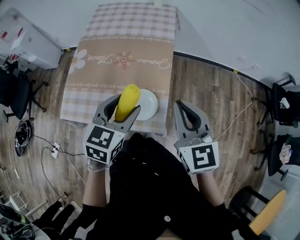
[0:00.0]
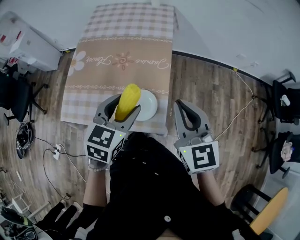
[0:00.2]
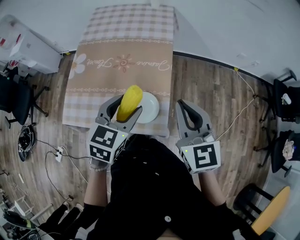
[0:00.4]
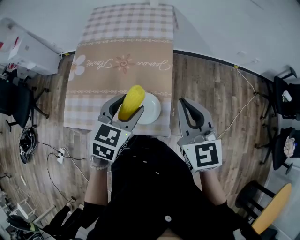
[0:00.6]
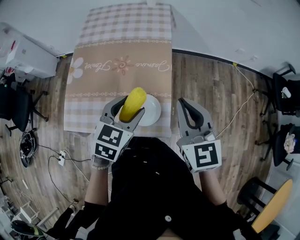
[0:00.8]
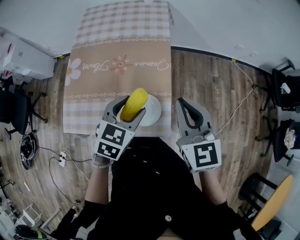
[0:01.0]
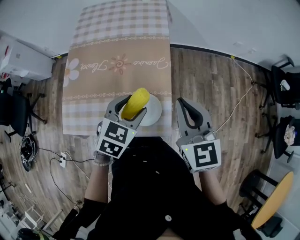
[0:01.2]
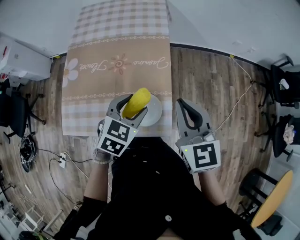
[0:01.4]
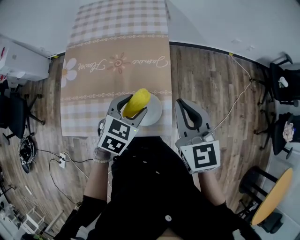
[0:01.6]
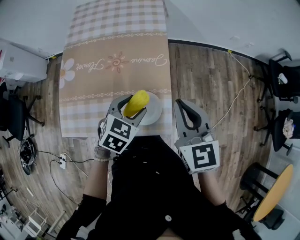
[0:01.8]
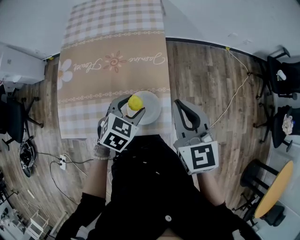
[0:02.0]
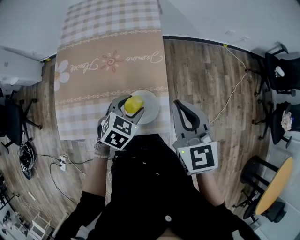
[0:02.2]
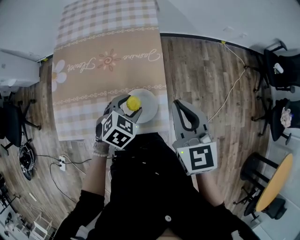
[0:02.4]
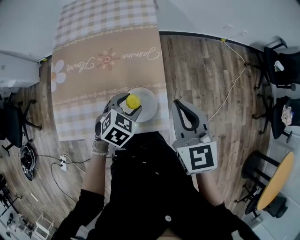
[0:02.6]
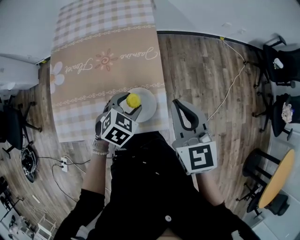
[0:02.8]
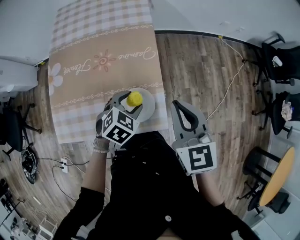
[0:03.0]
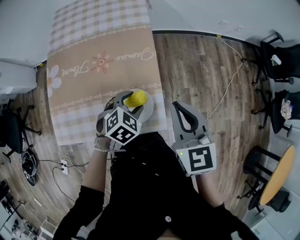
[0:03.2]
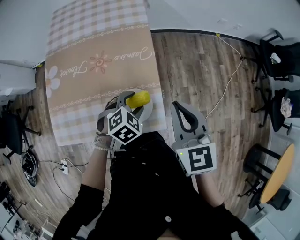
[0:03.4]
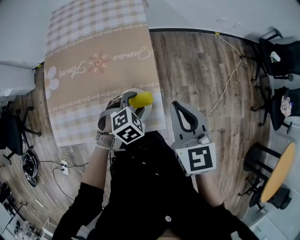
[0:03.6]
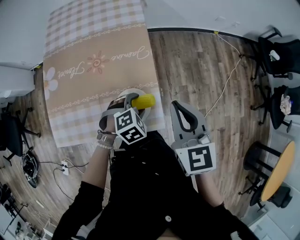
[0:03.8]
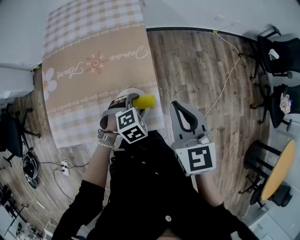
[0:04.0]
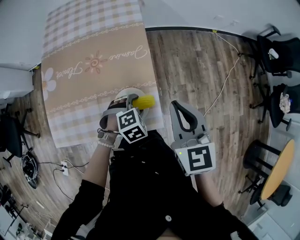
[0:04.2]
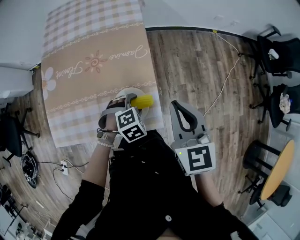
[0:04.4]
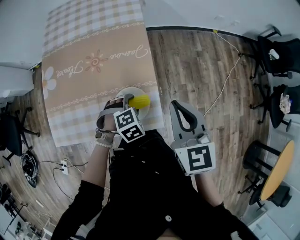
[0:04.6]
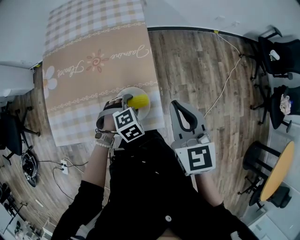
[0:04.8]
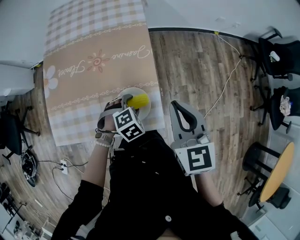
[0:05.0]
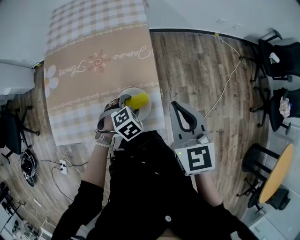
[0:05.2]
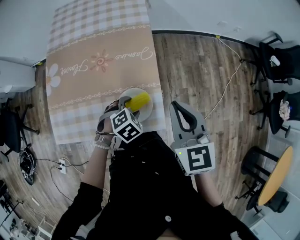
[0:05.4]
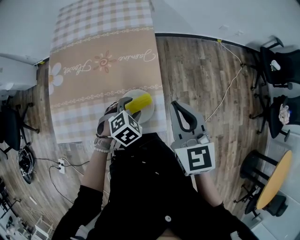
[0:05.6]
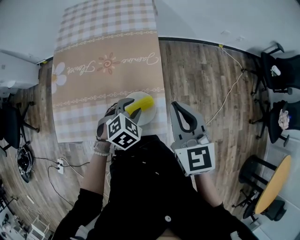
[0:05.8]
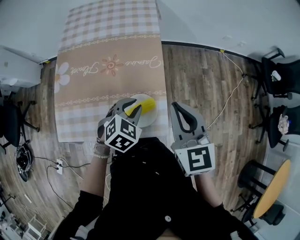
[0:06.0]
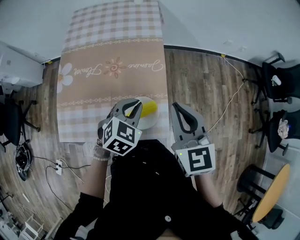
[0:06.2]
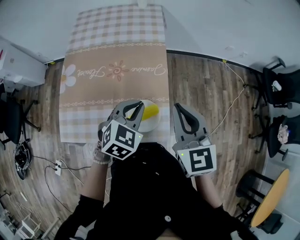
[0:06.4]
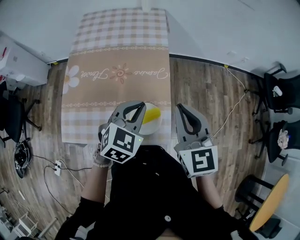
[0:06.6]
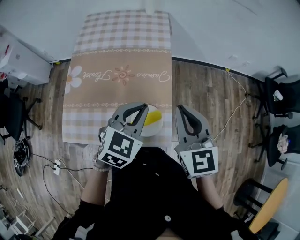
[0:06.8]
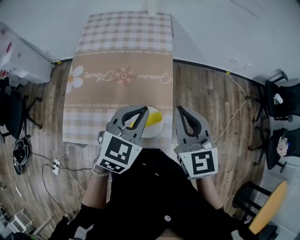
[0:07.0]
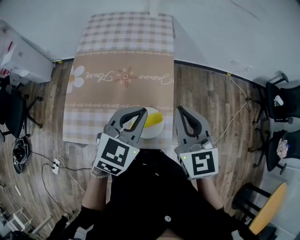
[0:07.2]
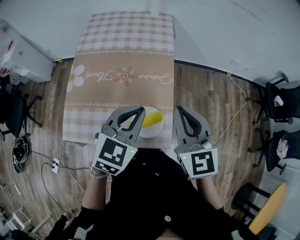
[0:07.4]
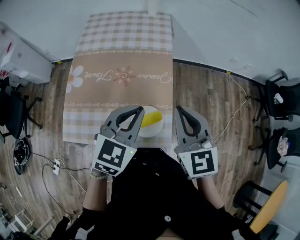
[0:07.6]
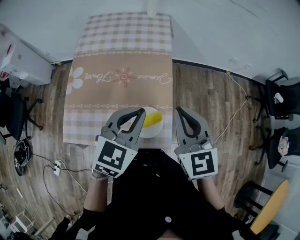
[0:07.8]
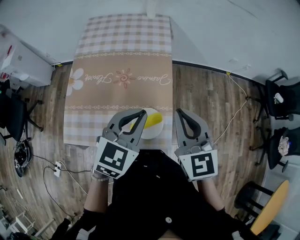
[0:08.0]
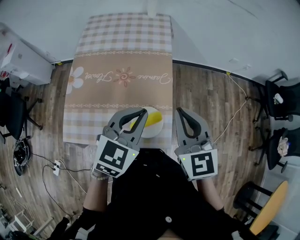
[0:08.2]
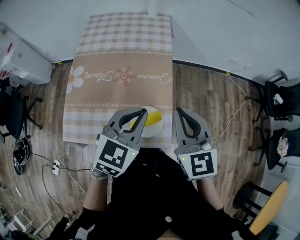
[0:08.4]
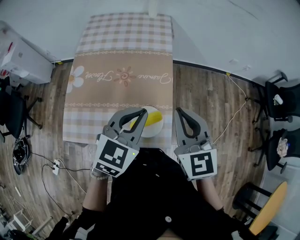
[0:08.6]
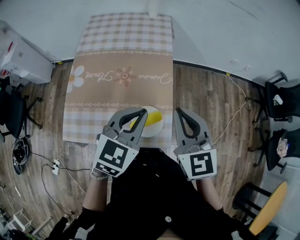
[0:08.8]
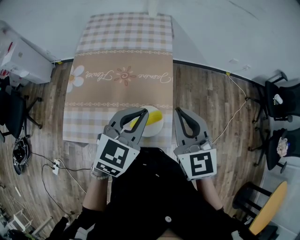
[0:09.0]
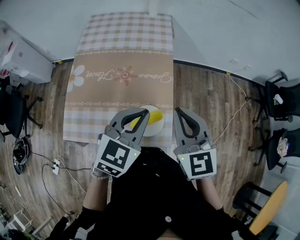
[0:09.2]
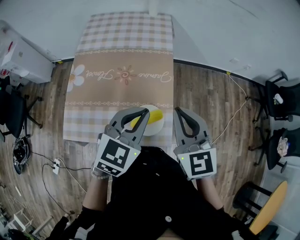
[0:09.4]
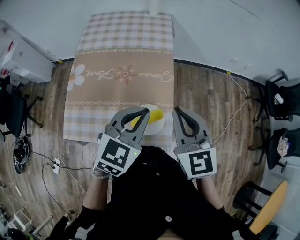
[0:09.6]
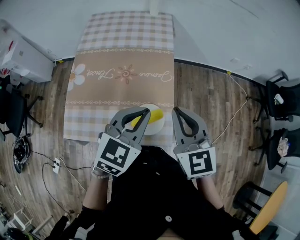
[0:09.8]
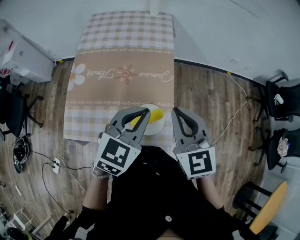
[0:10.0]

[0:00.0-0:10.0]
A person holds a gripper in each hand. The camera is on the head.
0:00.0 to 0:01.4: The left gripper heads downward, covering about 5 cm, and swivels some 20 degrees.
0:01.4 to 0:02.8: The left gripper heads downward, covering some 10 cm.
0:02.8 to 0:04.2: The left gripper shifts about 10 cm downward and to the right, and turns by about 30 degrees.
0:04.2 to 0:05.8: The left gripper is displaced to the left and upward by approximately 10 cm, and changes its angle by roughly 20 degrees.
0:05.8 to 0:07.2: The left gripper goes approximately 20 cm upward, angles its fingers upward, by approximately 30 degrees, and closes, while the right gripper moves some 5 cm.
0:07.2 to 0:08.6: The grippers make only small movements.
0:08.6 to 0:10.0: Both grippers stay about where they are.

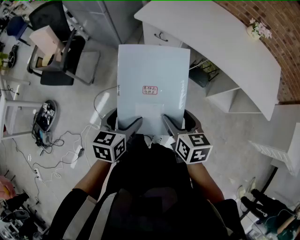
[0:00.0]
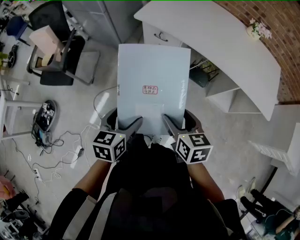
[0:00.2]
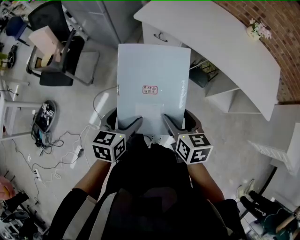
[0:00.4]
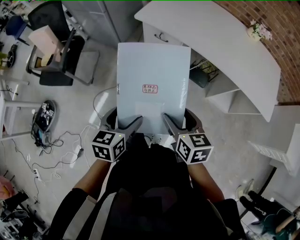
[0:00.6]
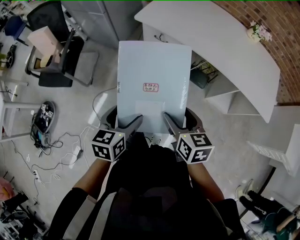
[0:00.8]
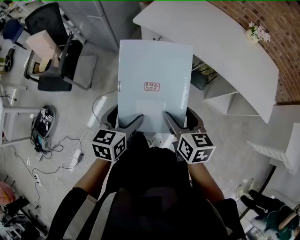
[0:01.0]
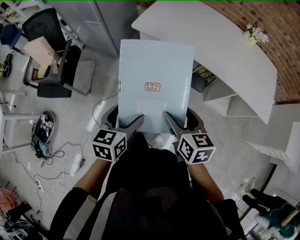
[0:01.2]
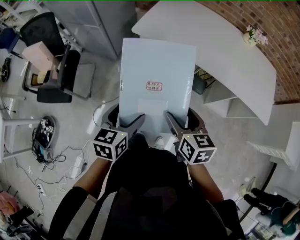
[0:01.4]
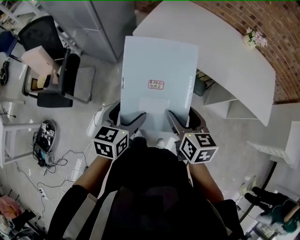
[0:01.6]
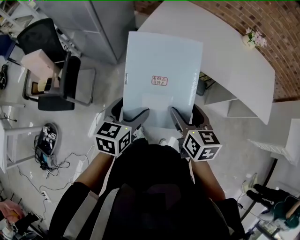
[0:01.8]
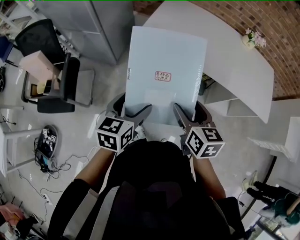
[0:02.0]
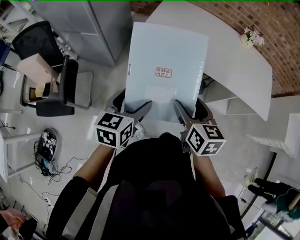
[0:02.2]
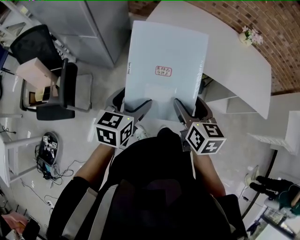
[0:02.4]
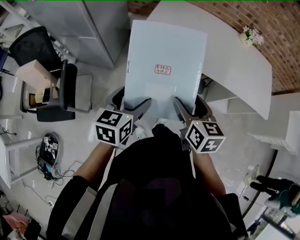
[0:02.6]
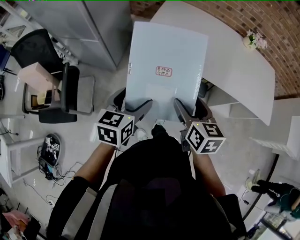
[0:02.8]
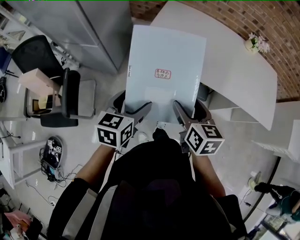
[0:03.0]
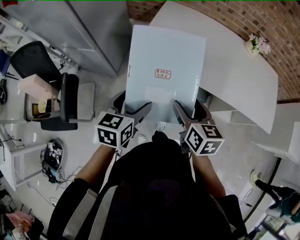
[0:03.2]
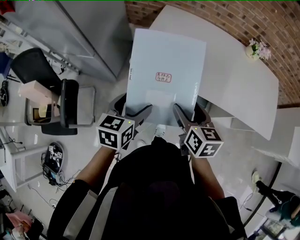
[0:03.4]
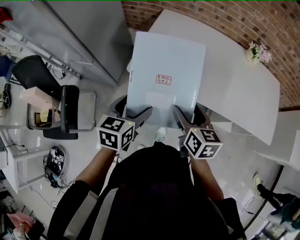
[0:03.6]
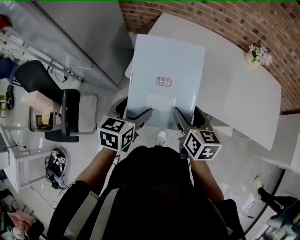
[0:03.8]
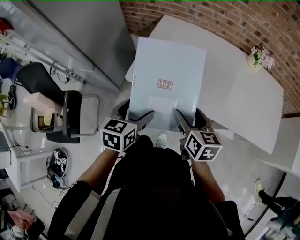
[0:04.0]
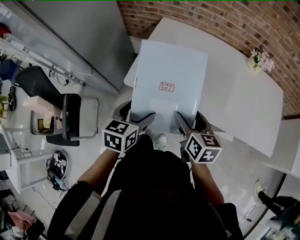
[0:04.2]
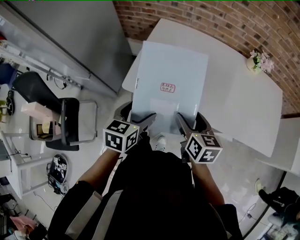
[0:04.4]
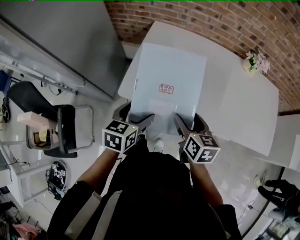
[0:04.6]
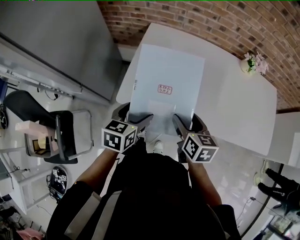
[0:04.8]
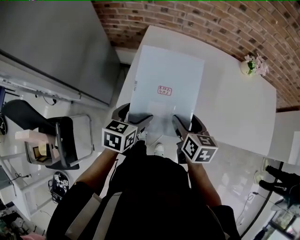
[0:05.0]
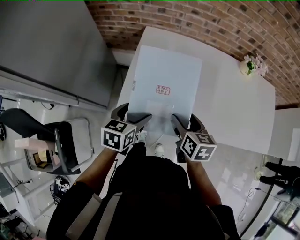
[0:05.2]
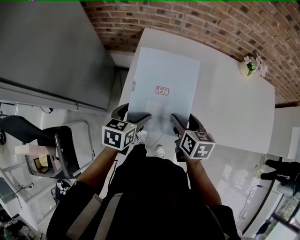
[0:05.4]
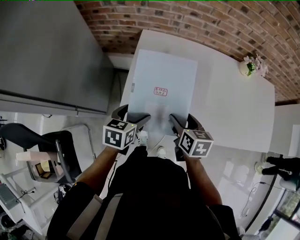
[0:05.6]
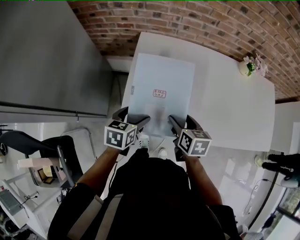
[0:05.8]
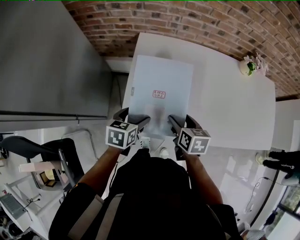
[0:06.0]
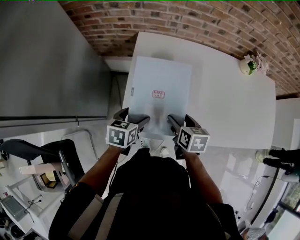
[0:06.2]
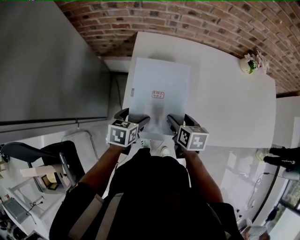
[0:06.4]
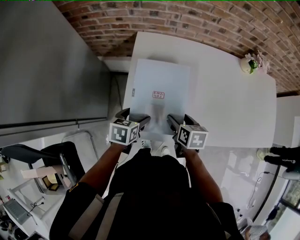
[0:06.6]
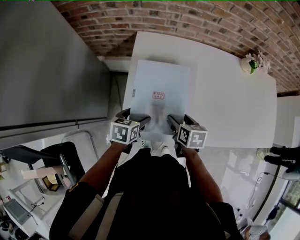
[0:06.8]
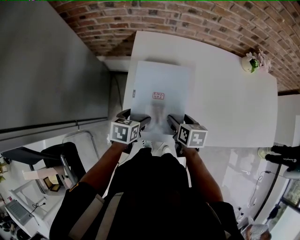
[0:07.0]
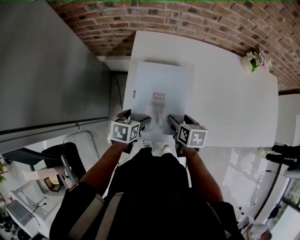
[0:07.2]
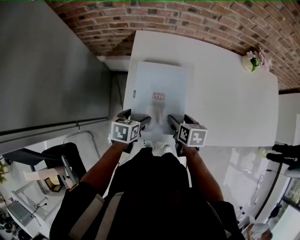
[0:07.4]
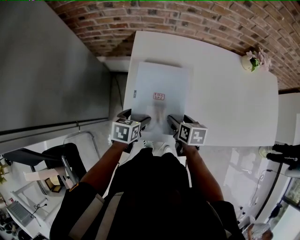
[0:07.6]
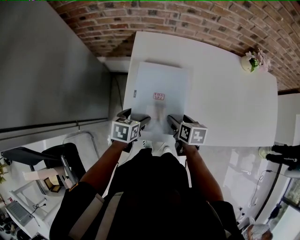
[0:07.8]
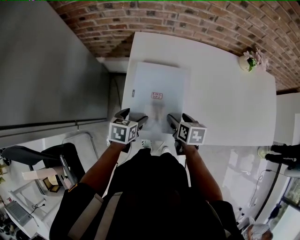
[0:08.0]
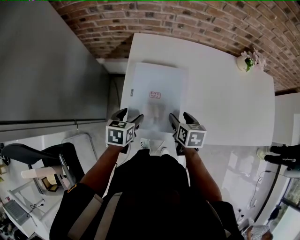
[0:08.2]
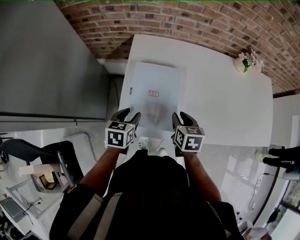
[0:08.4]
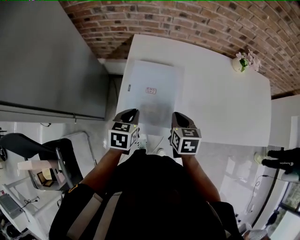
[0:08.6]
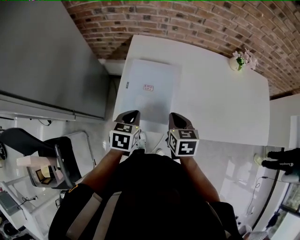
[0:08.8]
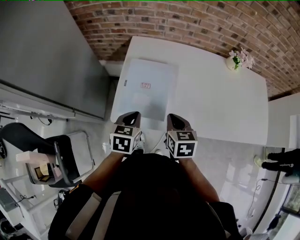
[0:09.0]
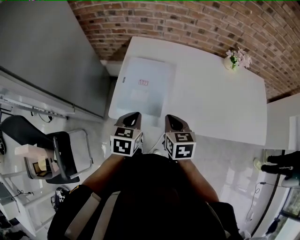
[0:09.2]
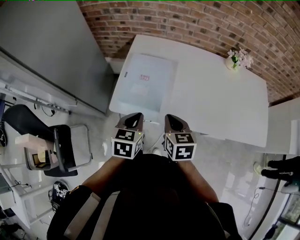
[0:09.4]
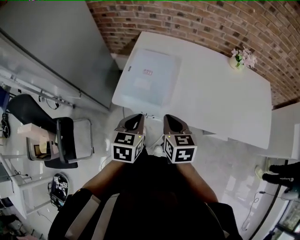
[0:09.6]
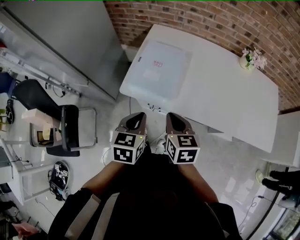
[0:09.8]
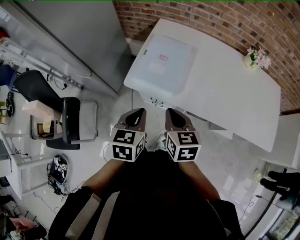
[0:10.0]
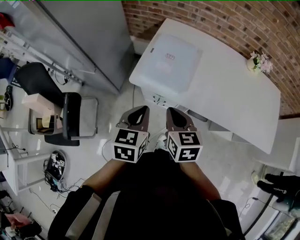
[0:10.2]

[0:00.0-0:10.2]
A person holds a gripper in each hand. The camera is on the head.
0:00.0 to 0:01.4: Both grippers move forward, roughly 10 cm.
0:01.4 to 0:03.0: The two grippers go approximately 20 cm forward and to the left.
0:03.0 to 0:04.4: Both grippers travel together forward and to the right, some 20 cm.
0:04.4 to 0:05.8: The grippers both shift forward, downward and to the left by some 20 cm.
0:05.8 to 0:07.2: Both grippers travel together downward, some 5 cm.
0:07.2 to 0:08.8: The grippers both shift upward by approximately 10 cm. The left gripper closes its fingers. Meanwhile the right gripper rotates approximately 20 degrees, and closes.
0:08.8 to 0:10.2: The two grippers go roughly 20 cm backward and upward. The right gripper rotates approximately 20 degrees, while the left gripper changes its angle by approximately 20 degrees.

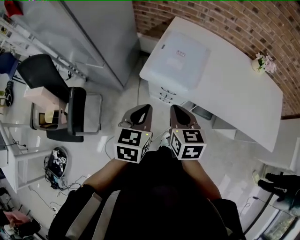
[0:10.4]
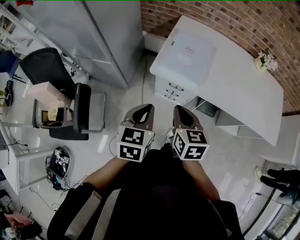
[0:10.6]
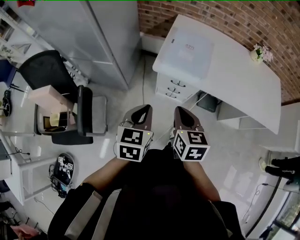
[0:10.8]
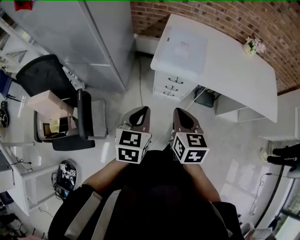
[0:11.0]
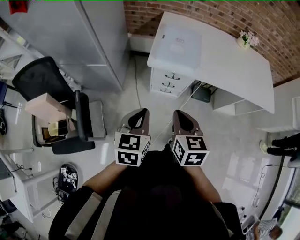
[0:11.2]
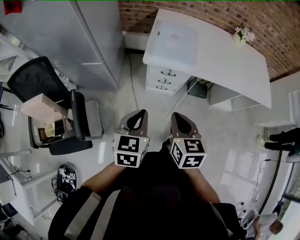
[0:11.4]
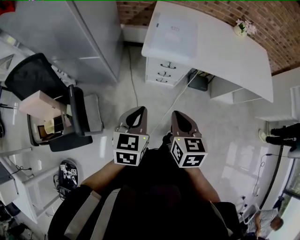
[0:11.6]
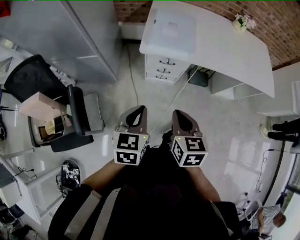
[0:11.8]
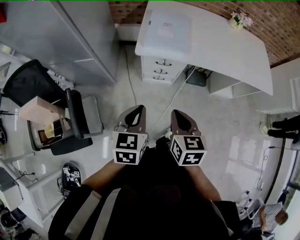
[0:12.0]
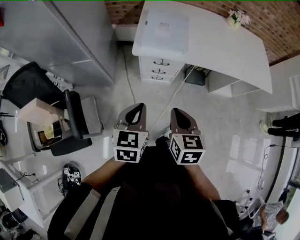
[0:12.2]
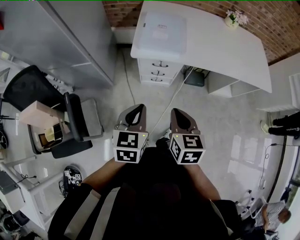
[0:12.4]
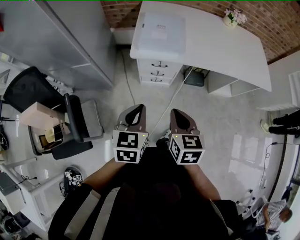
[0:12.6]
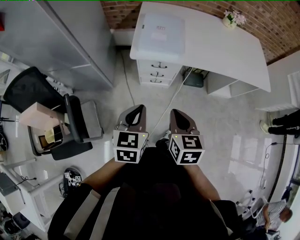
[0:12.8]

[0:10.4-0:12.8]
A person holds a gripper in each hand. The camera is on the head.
0:10.4 to 0:11.6: Both grippers travel together backward and to the left, roughly 20 cm.
0:11.6 to 0:12.8: There are only small adjustments of the grippers.

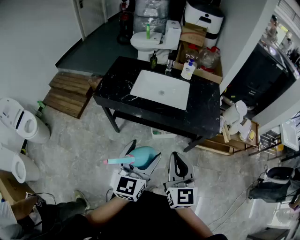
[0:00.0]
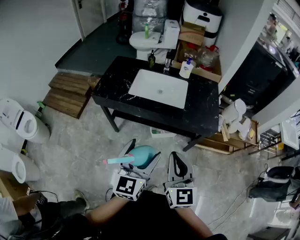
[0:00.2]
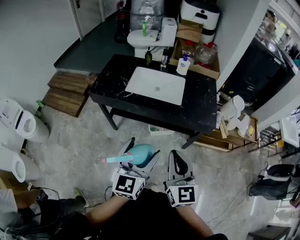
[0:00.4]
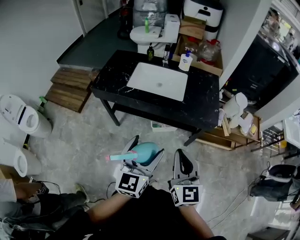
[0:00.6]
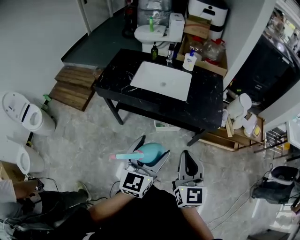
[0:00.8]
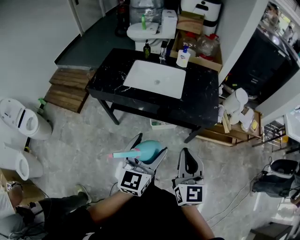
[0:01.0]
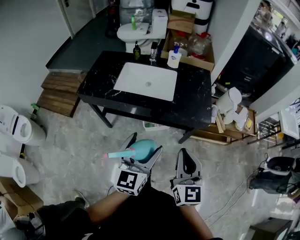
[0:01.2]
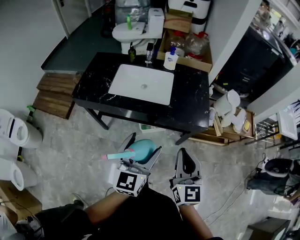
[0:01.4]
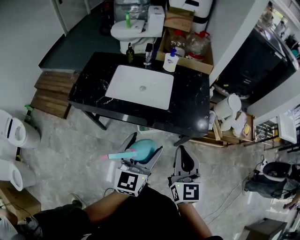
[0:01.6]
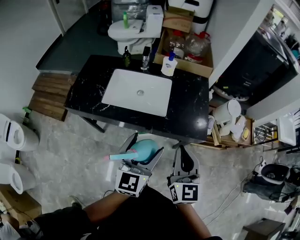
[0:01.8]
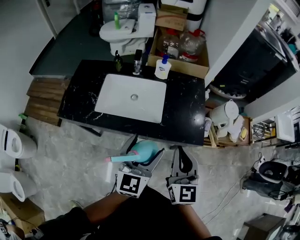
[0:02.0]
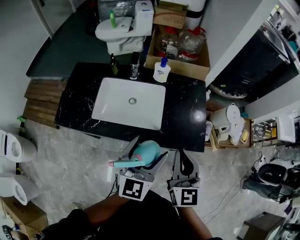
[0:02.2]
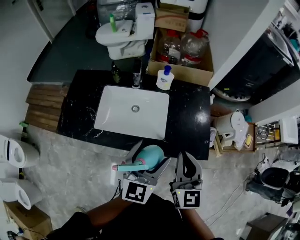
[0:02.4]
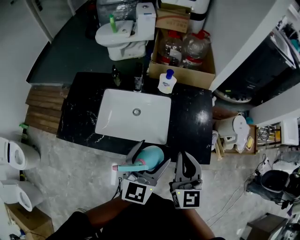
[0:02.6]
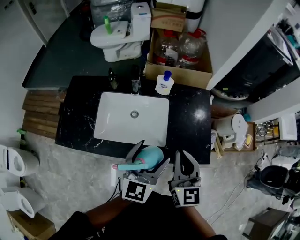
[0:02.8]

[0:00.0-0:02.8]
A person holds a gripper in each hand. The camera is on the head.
0:00.0 to 0:01.4: Both grippers travel together to the right and forward, about 15 cm.
0:01.4 to 0:02.8: The grippers both shift forward by about 30 cm.
